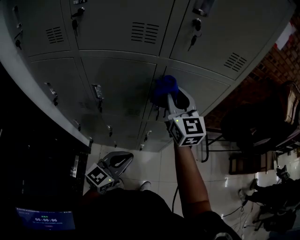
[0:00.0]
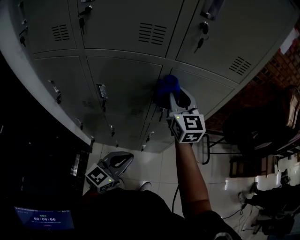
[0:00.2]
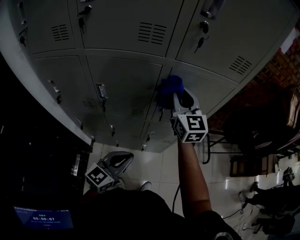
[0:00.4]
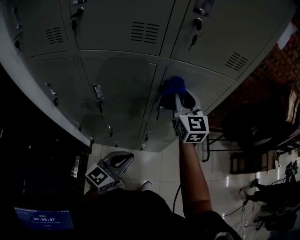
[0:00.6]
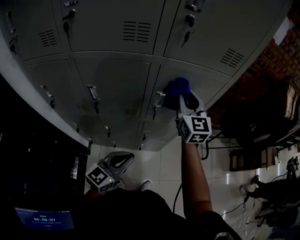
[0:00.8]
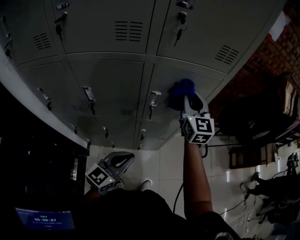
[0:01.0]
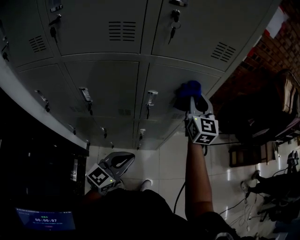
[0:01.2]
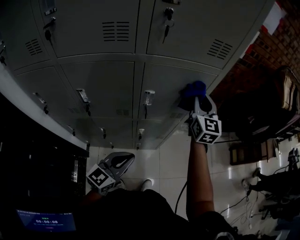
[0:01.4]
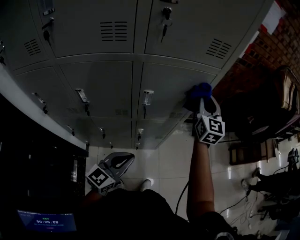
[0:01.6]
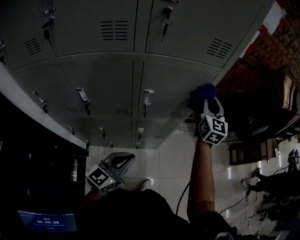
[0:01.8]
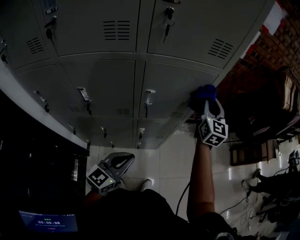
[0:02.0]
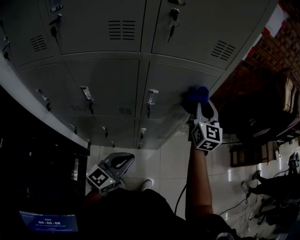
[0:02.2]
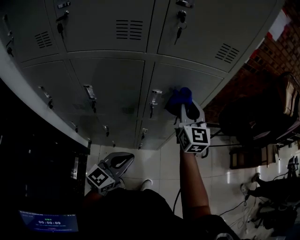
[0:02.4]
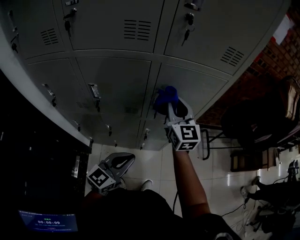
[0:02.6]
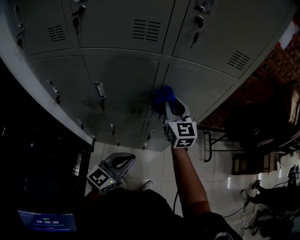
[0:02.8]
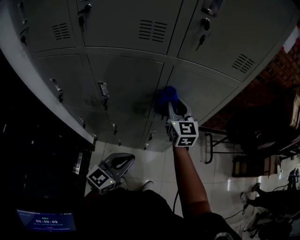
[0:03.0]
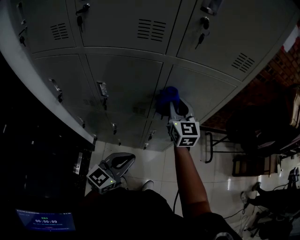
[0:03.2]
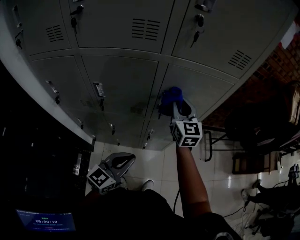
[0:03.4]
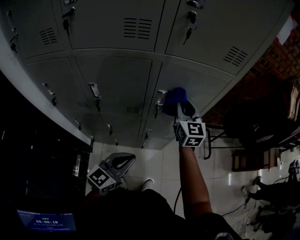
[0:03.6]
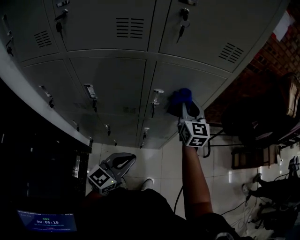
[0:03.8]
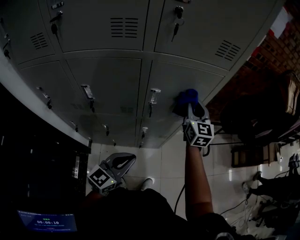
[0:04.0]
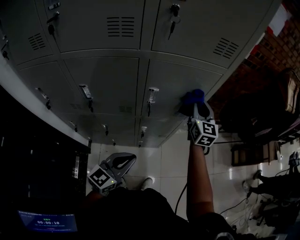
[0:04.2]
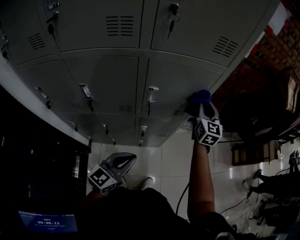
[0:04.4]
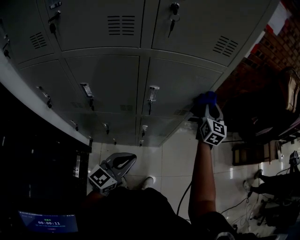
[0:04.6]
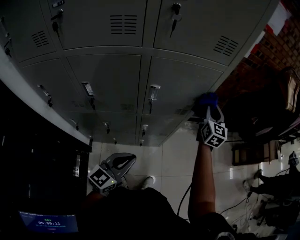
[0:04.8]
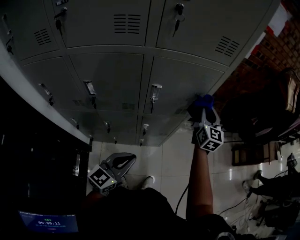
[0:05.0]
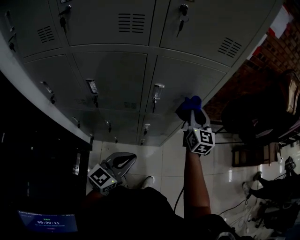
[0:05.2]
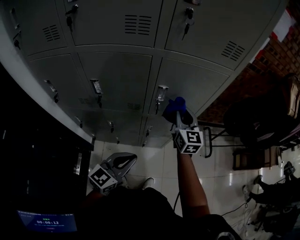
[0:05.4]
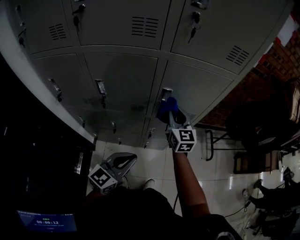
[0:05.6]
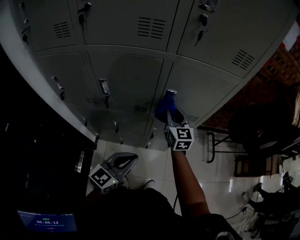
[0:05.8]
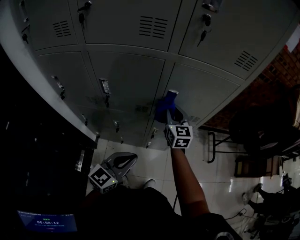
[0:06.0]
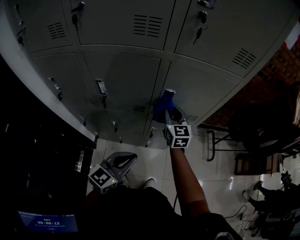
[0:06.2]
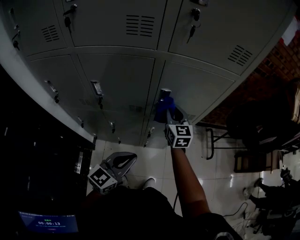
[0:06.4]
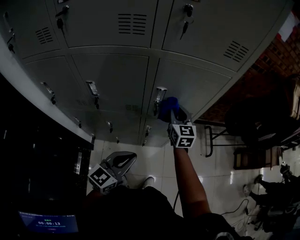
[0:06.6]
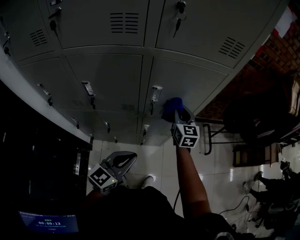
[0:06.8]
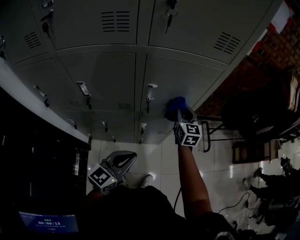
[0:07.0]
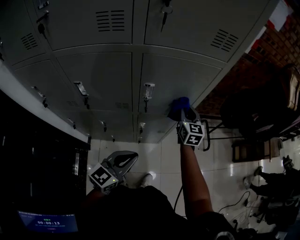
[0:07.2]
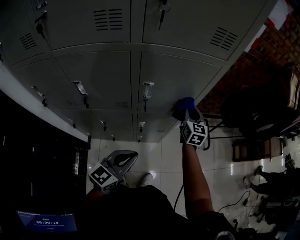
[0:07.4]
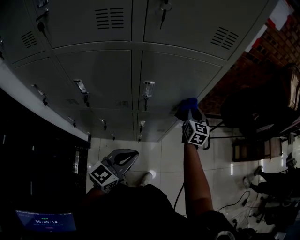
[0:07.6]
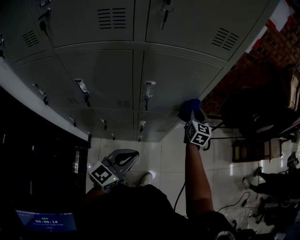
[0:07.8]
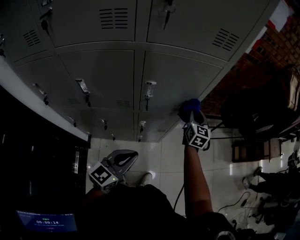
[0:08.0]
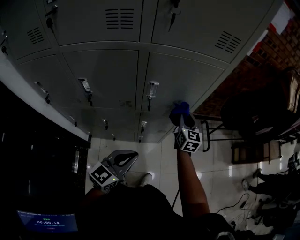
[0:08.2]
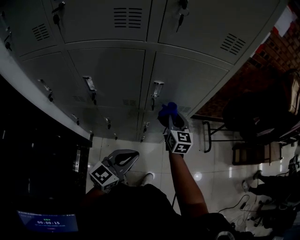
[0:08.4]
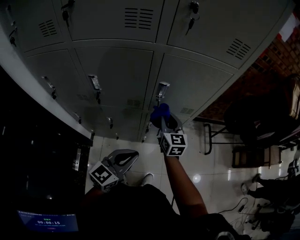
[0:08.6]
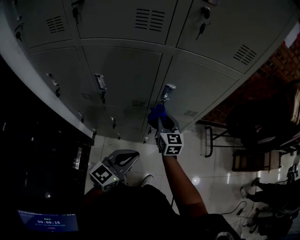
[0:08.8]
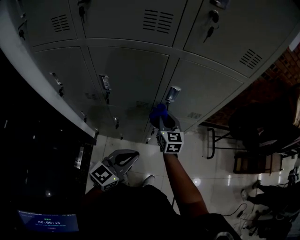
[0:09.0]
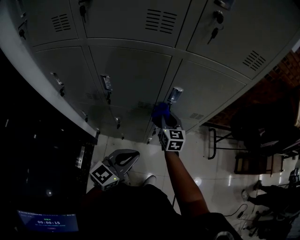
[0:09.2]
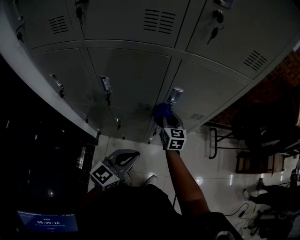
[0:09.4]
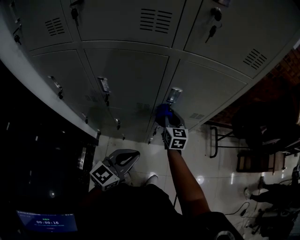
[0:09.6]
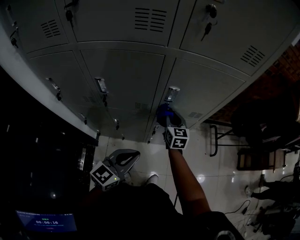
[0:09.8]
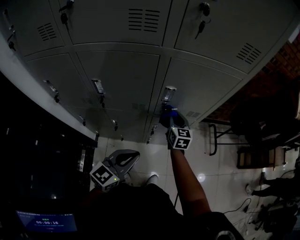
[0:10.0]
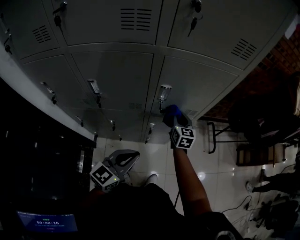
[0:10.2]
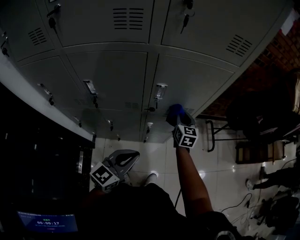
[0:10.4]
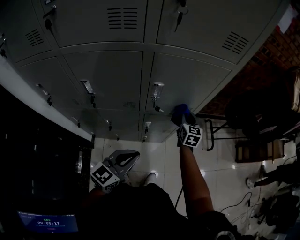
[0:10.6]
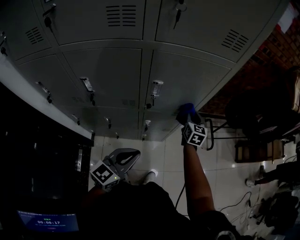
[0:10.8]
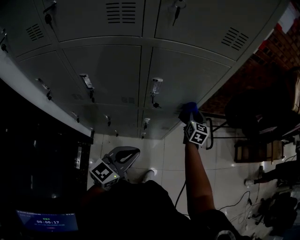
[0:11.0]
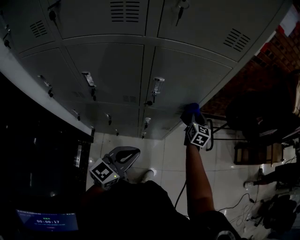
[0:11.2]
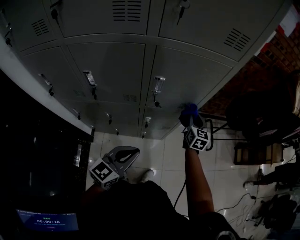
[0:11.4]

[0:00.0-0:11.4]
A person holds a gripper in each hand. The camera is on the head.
0:00.0 to 0:01.4: The right gripper goes roughly 20 cm to the right and forward, and turns by some 20 degrees.
0:01.4 to 0:02.8: The right gripper shifts approximately 20 cm to the left and backward.
0:02.8 to 0:04.2: The right gripper goes about 20 cm to the right.
0:04.2 to 0:05.6: The right gripper goes approximately 15 cm to the left and backward.
0:05.6 to 0:07.2: The left gripper moves to the right, roughly 5 cm; the right gripper moves to the right, forward and downward, about 15 cm.
0:07.2 to 0:08.6: The right gripper shifts roughly 15 cm to the left and backward.
0:08.6 to 0:10.0: The right gripper is displaced downward and forward by about 10 cm.
0:10.0 to 0:11.4: The right gripper shifts roughly 15 cm to the right.

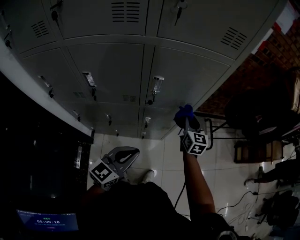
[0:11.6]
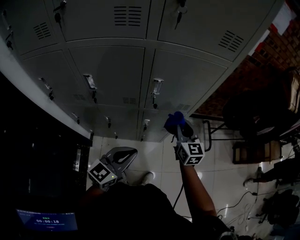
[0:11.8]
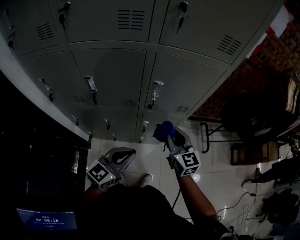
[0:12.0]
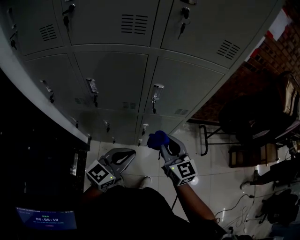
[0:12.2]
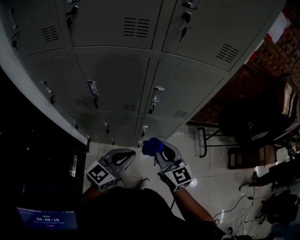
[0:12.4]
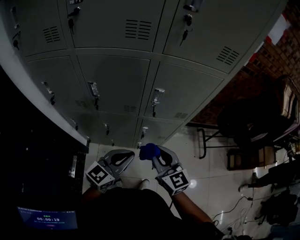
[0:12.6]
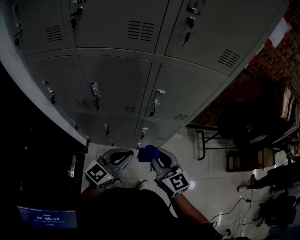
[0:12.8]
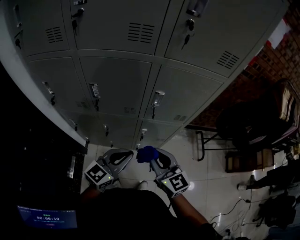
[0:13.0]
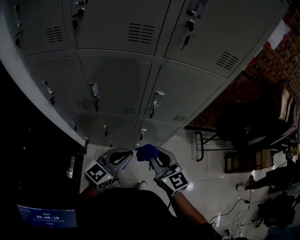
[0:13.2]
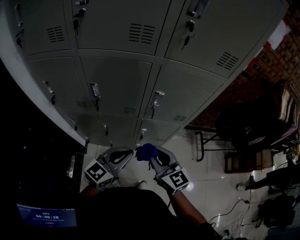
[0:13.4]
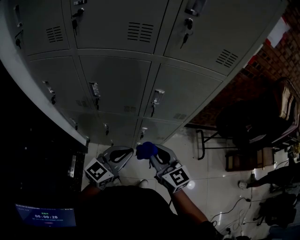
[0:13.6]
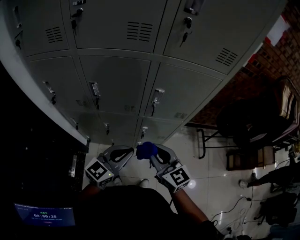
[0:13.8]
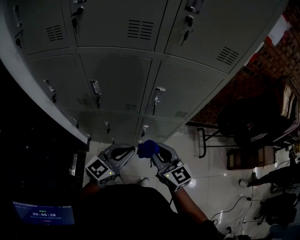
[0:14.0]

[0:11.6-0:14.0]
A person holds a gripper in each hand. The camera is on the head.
0:11.6 to 0:12.8: The right gripper shifts approximately 25 cm backward, to the left and upward, and rotates some 30 degrees.
0:12.8 to 0:14.0: The two grippers keep their place.

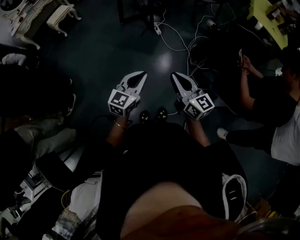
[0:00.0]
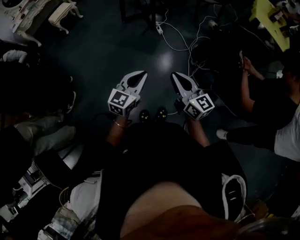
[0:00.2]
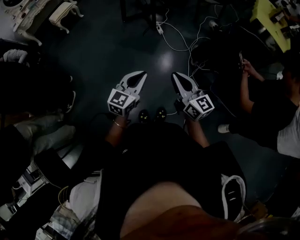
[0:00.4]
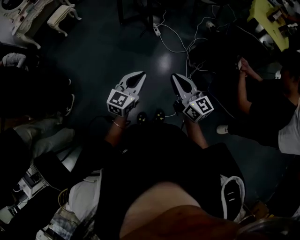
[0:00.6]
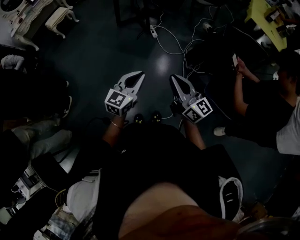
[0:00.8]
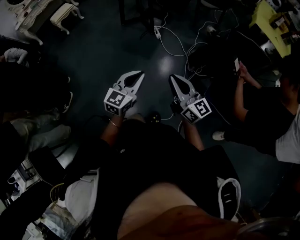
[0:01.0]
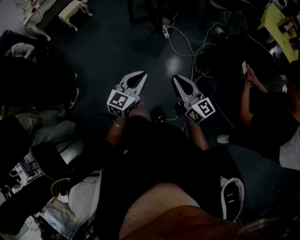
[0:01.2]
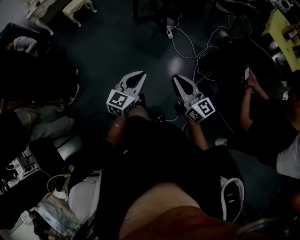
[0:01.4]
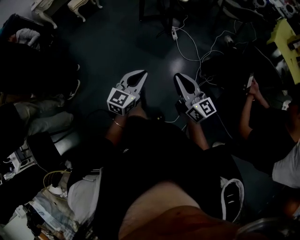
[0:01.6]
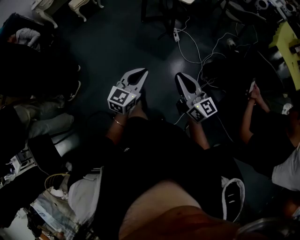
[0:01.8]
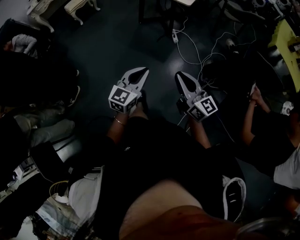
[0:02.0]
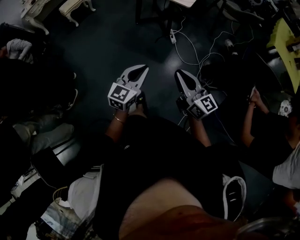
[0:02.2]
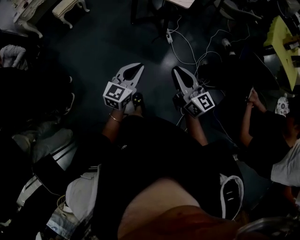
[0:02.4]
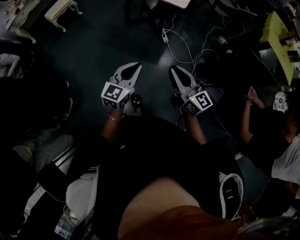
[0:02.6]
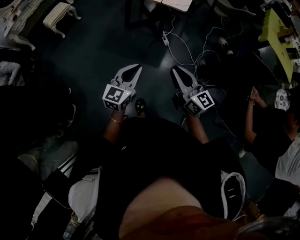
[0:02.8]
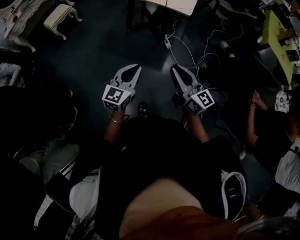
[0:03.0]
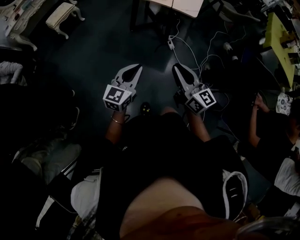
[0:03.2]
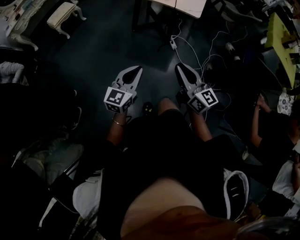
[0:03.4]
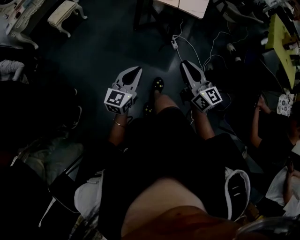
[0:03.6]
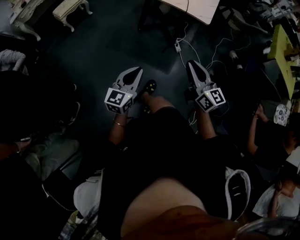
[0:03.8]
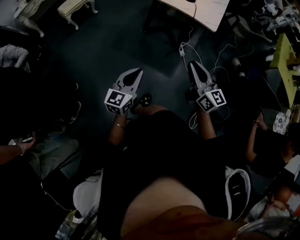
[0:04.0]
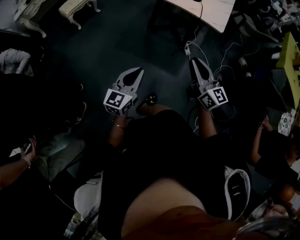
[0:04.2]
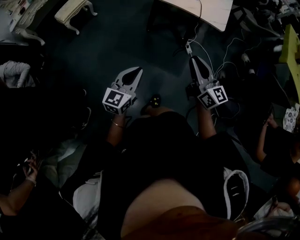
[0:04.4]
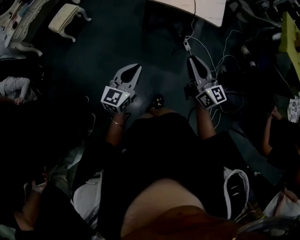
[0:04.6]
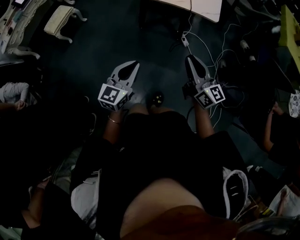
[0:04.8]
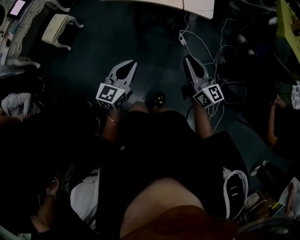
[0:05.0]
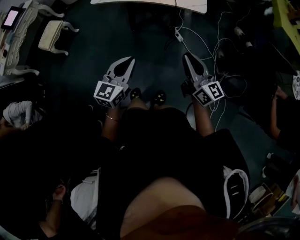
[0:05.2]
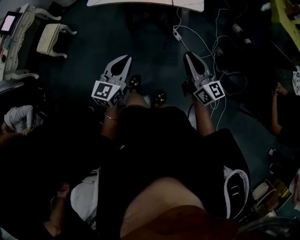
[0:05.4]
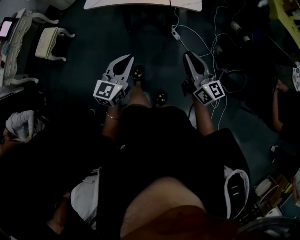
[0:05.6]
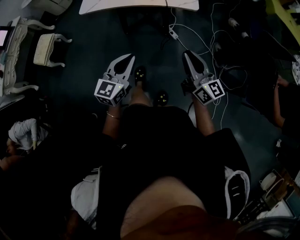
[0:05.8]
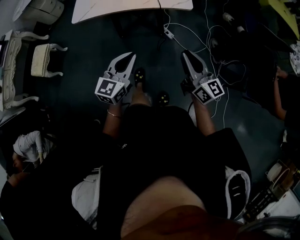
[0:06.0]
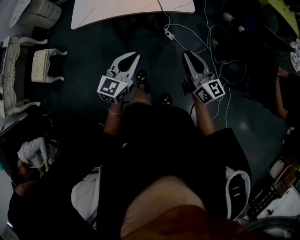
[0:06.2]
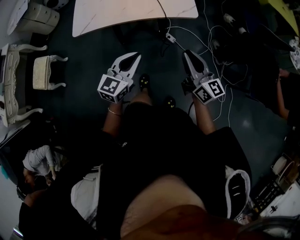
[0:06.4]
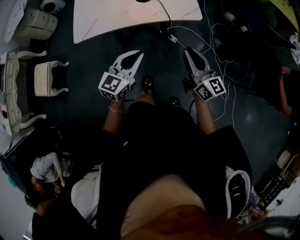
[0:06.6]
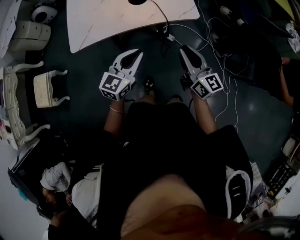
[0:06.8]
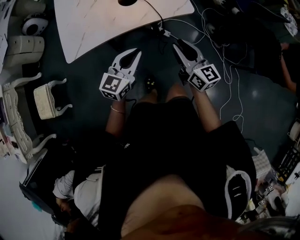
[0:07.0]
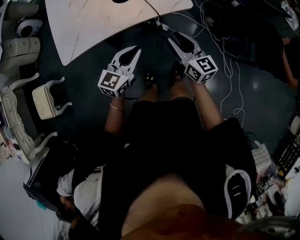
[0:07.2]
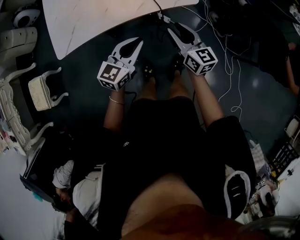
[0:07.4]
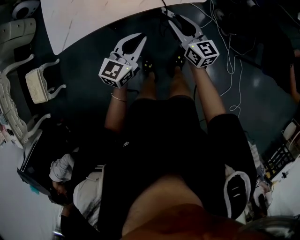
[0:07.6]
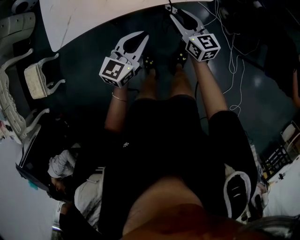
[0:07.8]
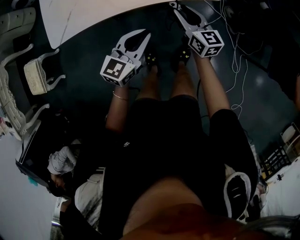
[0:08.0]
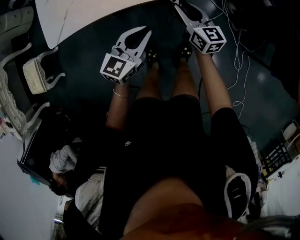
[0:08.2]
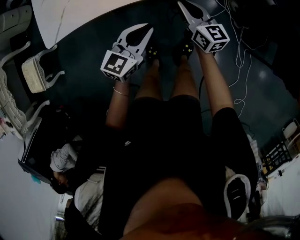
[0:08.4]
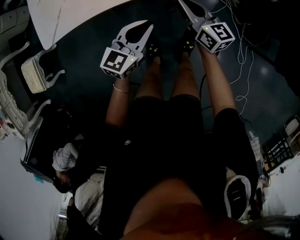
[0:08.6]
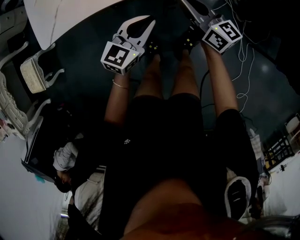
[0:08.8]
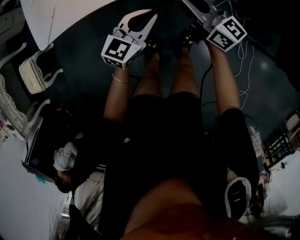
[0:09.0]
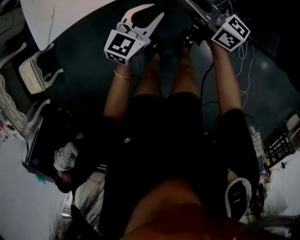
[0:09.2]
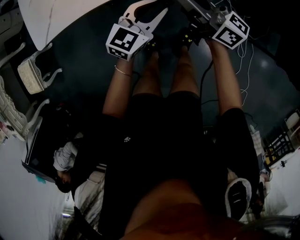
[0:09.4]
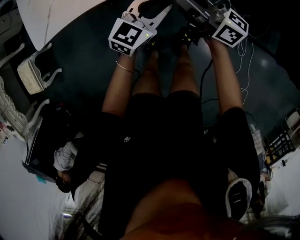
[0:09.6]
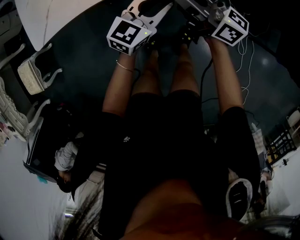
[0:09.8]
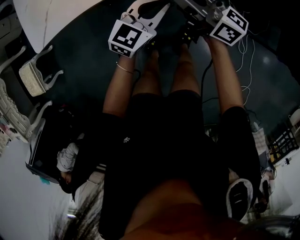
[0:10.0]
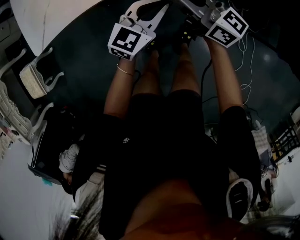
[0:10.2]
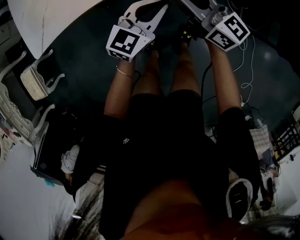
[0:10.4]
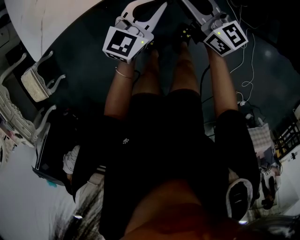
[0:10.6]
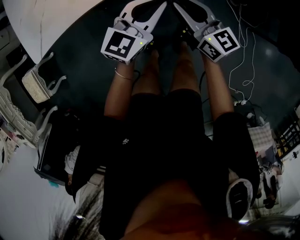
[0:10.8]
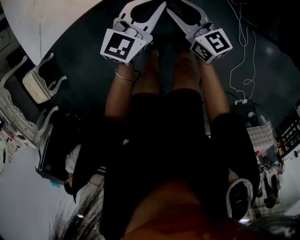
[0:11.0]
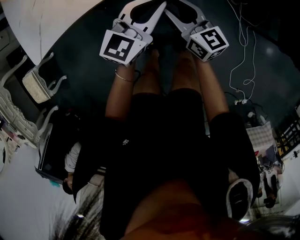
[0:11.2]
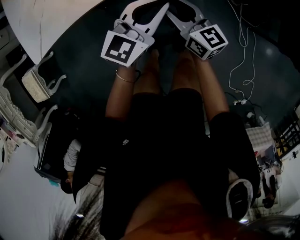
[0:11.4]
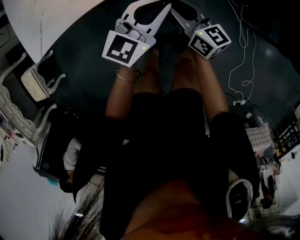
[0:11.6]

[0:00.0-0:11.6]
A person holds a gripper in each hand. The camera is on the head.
0:00.0 to 0:01.4: The right gripper ends up about 5 cm from where it was.
0:01.4 to 0:02.8: The grippers both shift forward and to the left by roughly 25 cm.
0:02.8 to 0:04.4: The left gripper is displaced to the left and forward by some 20 cm, while the right gripper travels forward and to the left by approximately 20 cm.
0:04.4 to 0:05.8: The left gripper travels forward by approximately 15 cm, and changes its angle by approximately 20 degrees, while the right gripper shifts by about 5 cm.
0:05.8 to 0:07.2: The right gripper is displaced forward, downward and to the left by about 20 cm, turns by approximately 20 degrees, and opens; the left gripper travels forward by approximately 20 cm, and swivels roughly 30 degrees.
0:07.2 to 0:08.8: The left gripper heads downward, covering some 10 cm; the right gripper is displaced downward and forward by about 10 cm, and closes up.
0:08.8 to 0:10.2: The left gripper heads to the right, covering roughly 5 cm. Meanwhile the right gripper heads upward, covering some 5 cm.
0:10.2 to 0:11.6: The right gripper travels downward by some 10 cm, and rotates some 20 degrees.
